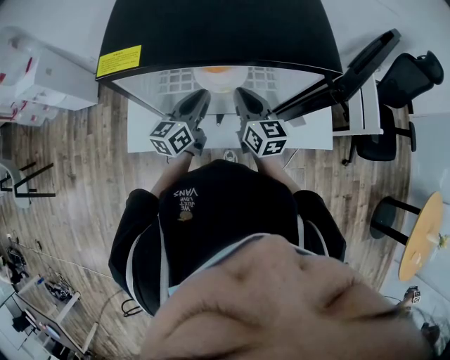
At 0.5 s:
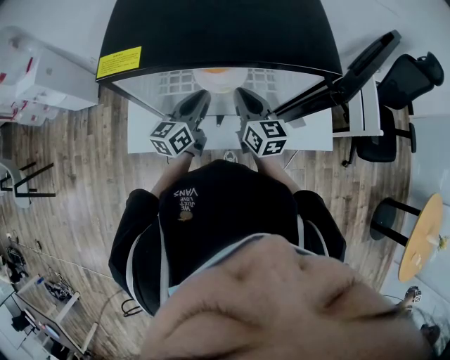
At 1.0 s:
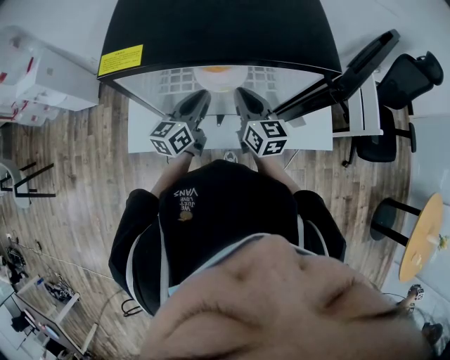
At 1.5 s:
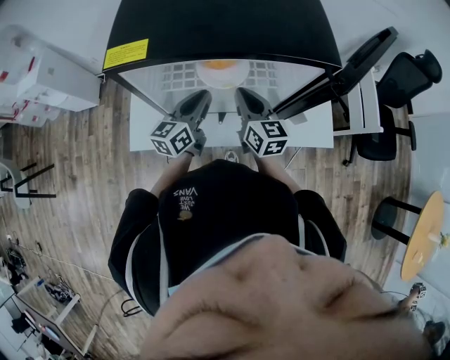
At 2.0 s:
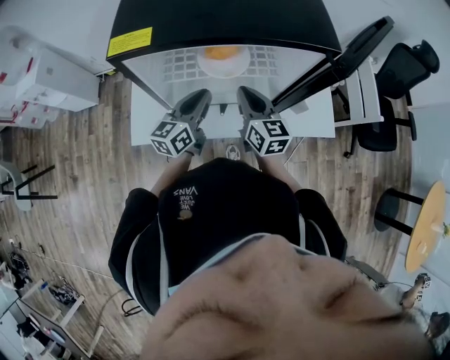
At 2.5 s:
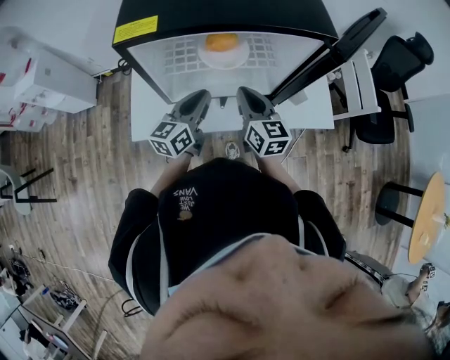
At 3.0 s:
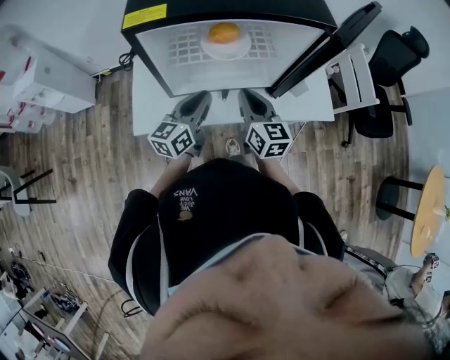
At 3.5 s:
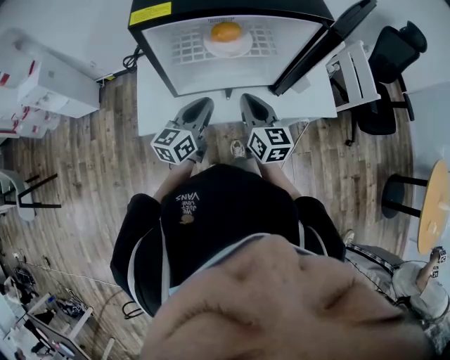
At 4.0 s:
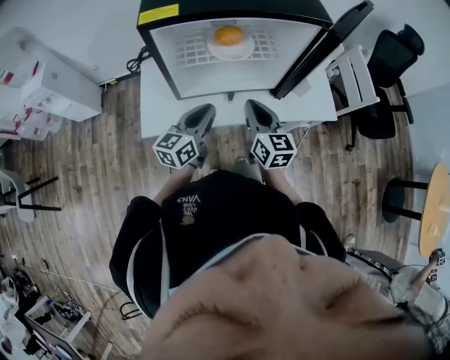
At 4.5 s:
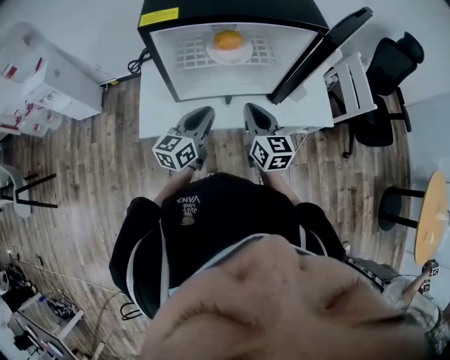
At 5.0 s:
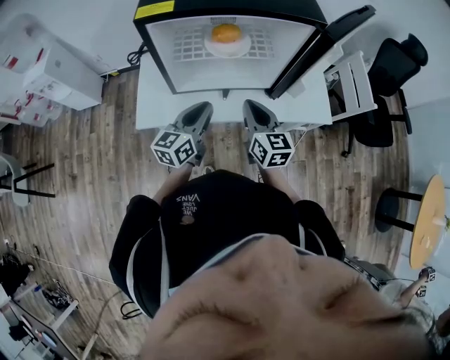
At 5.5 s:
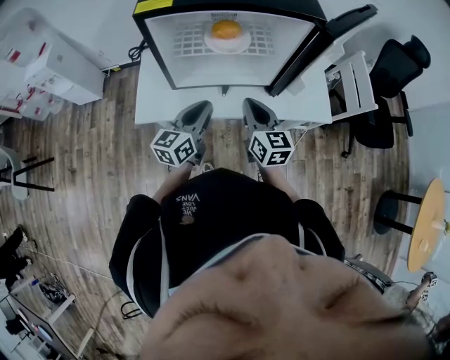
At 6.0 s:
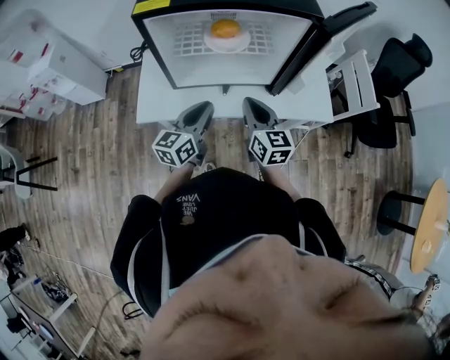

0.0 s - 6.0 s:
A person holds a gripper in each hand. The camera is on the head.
0.0 s - 2.0 s: The grippers move only a little.
2.0 s - 4.0 s: Both grippers move backward, approximately 10 cm.
4.0 s - 6.0 s: There are only small adjustments of the grippers.

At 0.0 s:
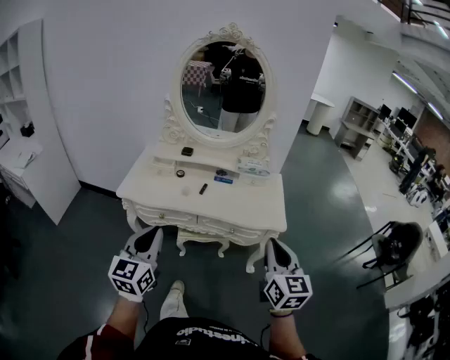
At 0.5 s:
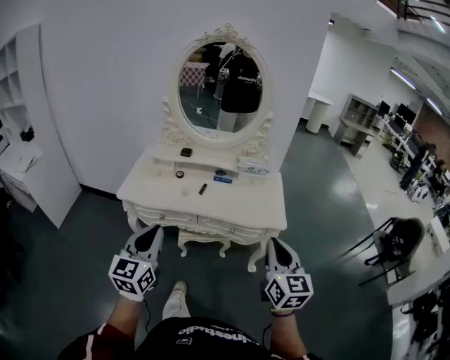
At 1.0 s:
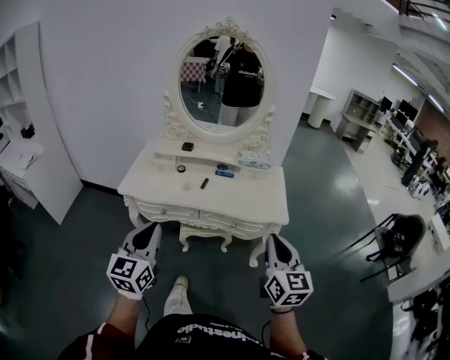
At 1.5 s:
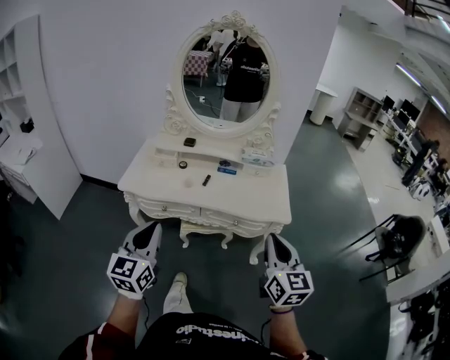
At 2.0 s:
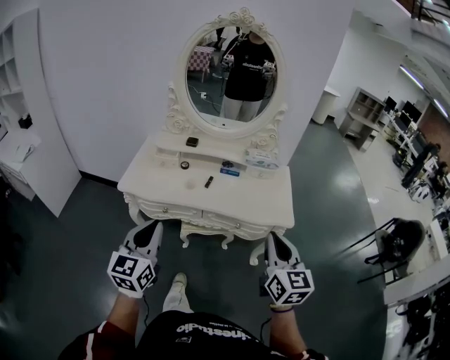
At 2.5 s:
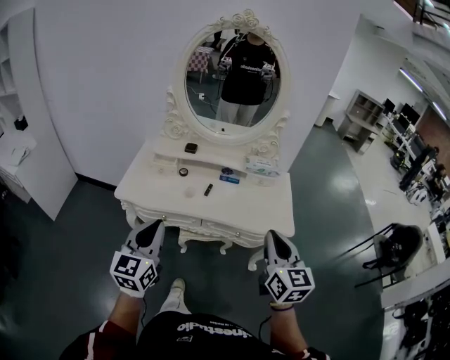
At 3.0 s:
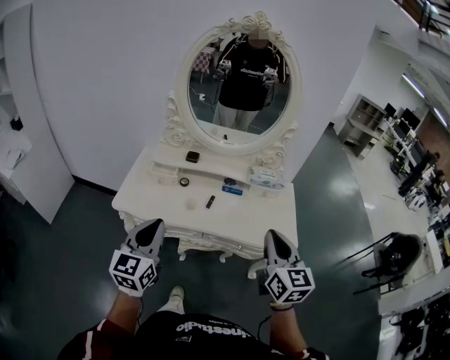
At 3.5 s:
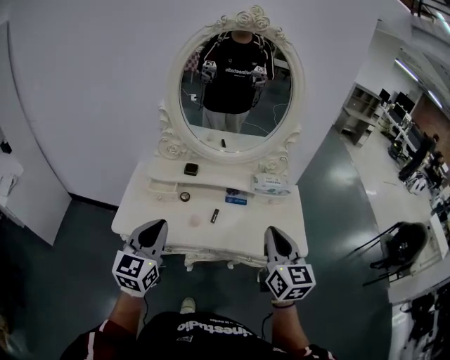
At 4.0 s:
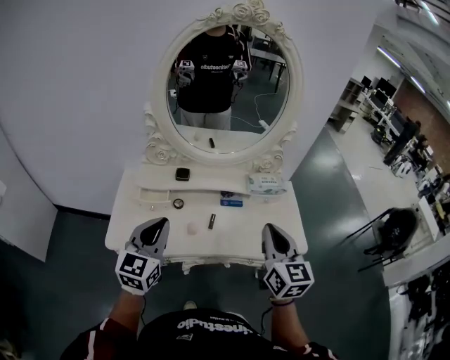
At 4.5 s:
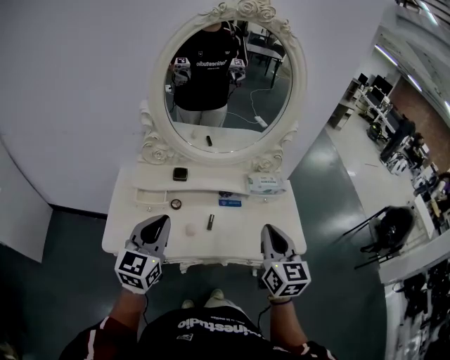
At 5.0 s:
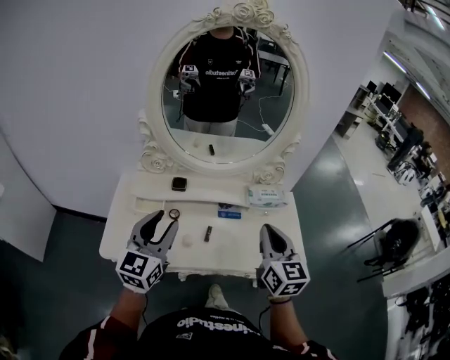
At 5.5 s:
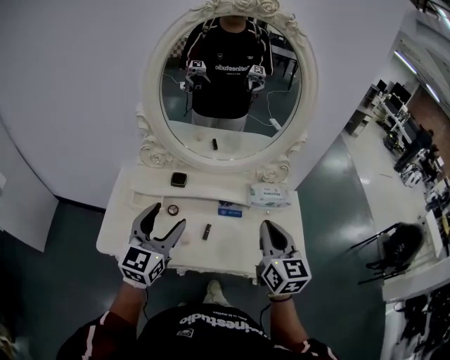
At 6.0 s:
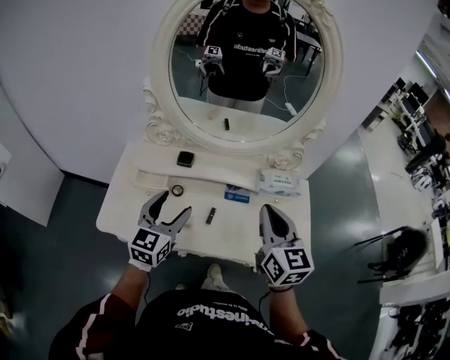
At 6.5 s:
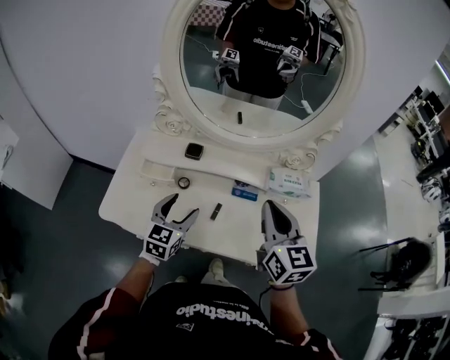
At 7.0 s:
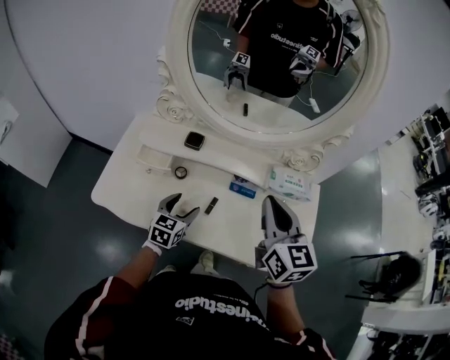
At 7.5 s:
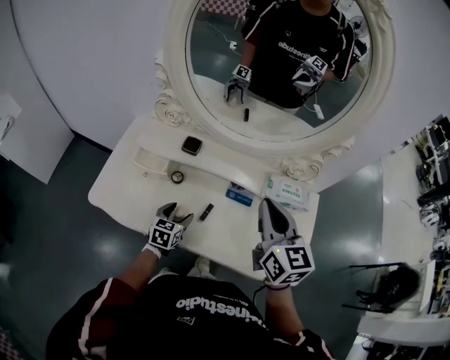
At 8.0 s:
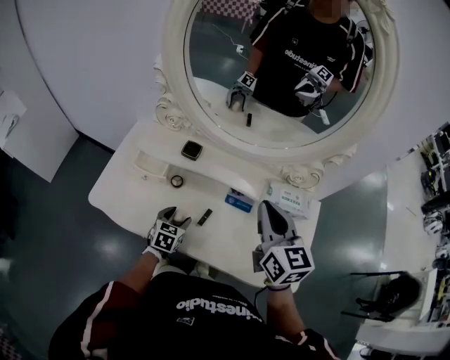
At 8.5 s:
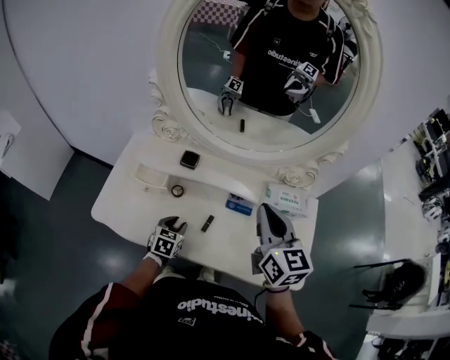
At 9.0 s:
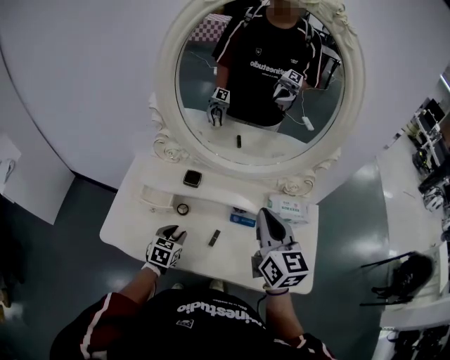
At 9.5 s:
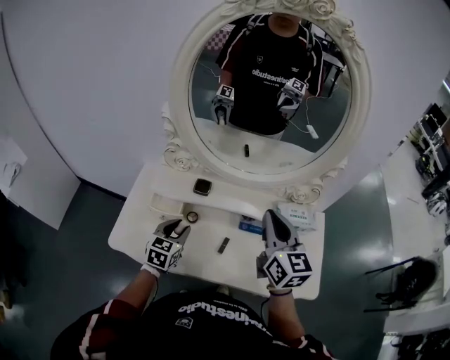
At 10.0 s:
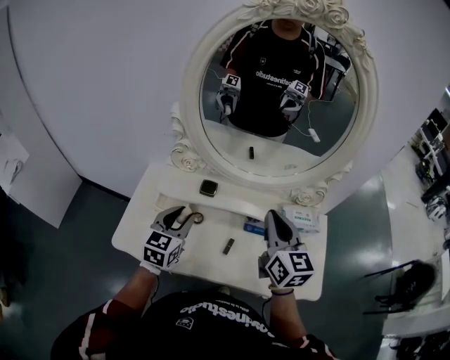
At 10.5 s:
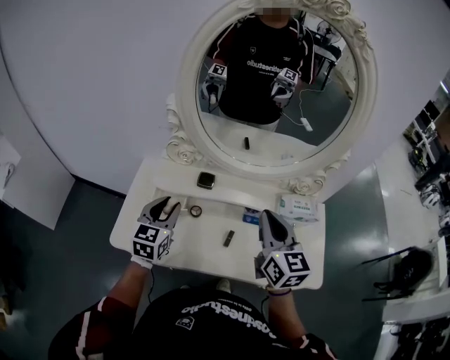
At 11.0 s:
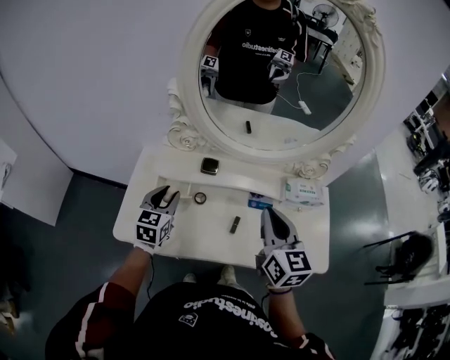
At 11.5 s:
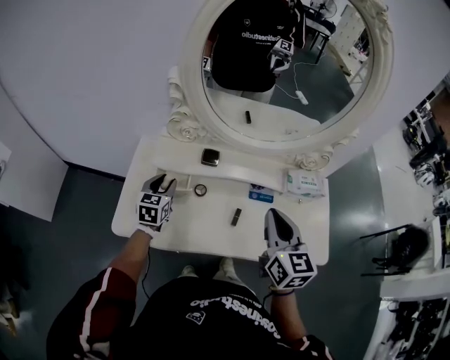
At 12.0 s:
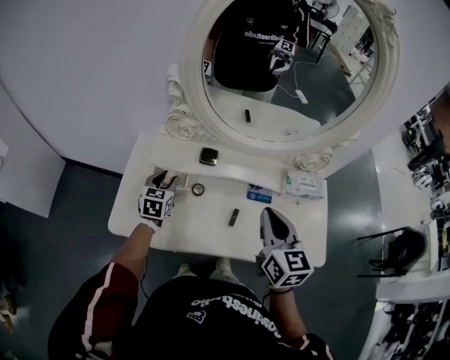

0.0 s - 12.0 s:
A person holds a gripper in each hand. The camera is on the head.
0.0 s - 2.0 s: The right gripper moves about 5 cm.
2.0 s - 4.0 s: The left gripper is displaced forward by approximately 30 cm. Meanwhile the right gripper heads forward and to the left, covering approximately 30 cm.
4.0 s - 6.0 s: The left gripper moves forward and downward, roughly 15 cm, and opens; the right gripper travels forward by some 10 cm.
6.0 s - 8.0 s: The left gripper goes about 25 cm downward, and tilts its fingers about 30 degrees downward; the right gripper heads forward, covering some 10 cm.
8.0 s - 10.0 s: The left gripper shifts about 25 cm upward, rotates about 30 degrees, and closes up. Meanwhile the right gripper shifts roughly 5 cm to the left.
10.0 s - 12.0 s: The left gripper heads downward, to the left and forward, covering some 20 cm. Meanwhile the right gripper goes approximately 10 cm downward and backward.

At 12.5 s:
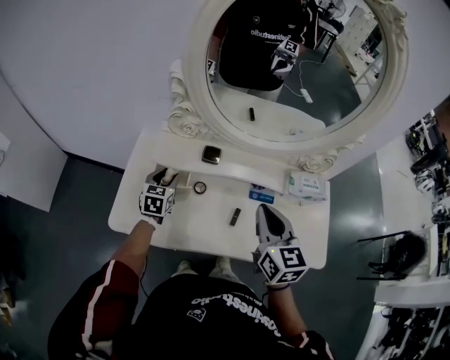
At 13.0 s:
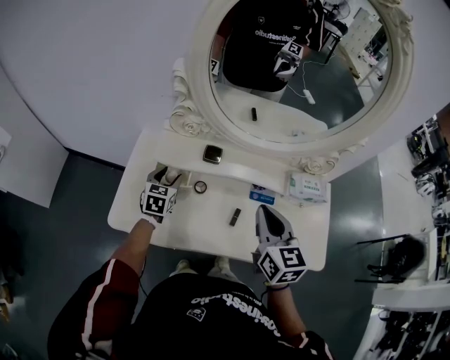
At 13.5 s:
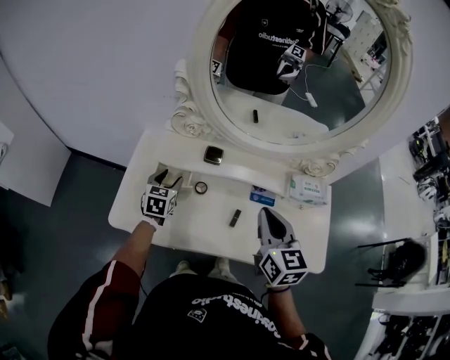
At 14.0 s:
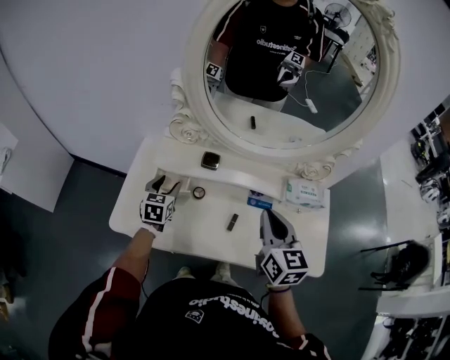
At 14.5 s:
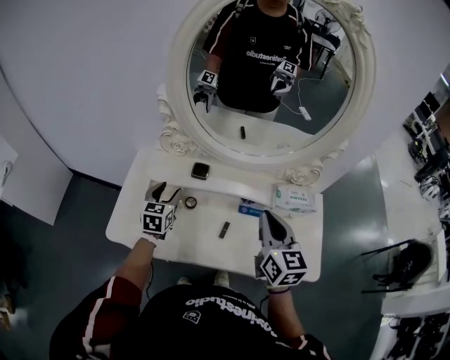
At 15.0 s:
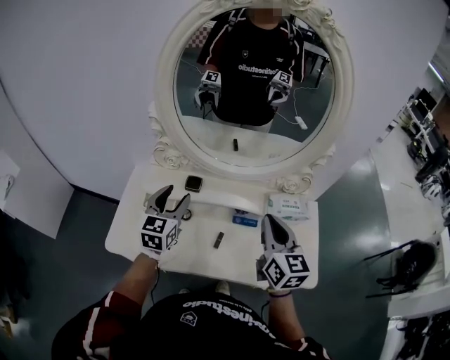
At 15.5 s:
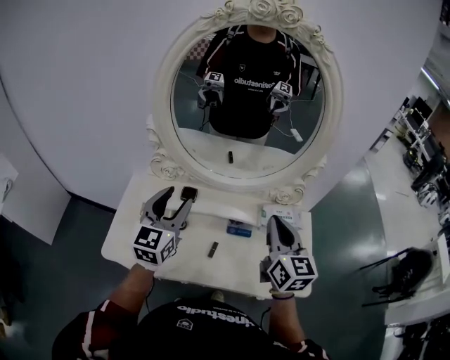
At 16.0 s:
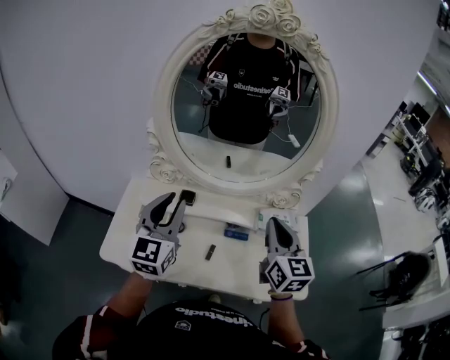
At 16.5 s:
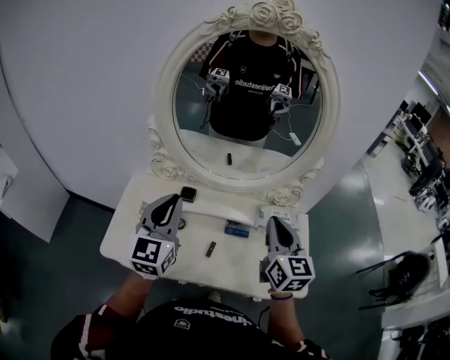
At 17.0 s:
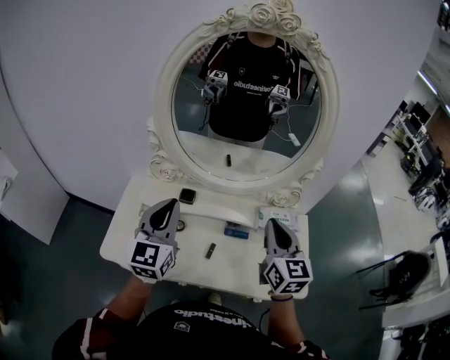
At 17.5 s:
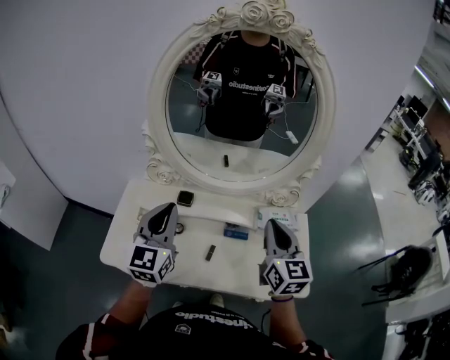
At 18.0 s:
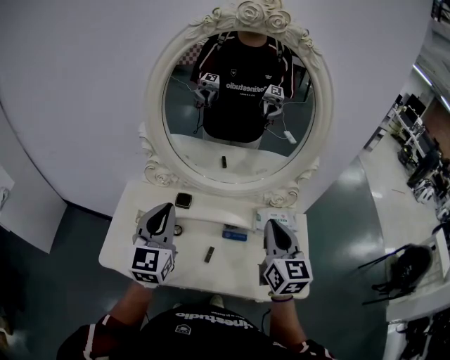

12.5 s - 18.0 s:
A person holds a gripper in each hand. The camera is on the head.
12.5 s - 14.5 s: The left gripper travels upward by roughly 5 cm. The right gripper heads to the right, covering about 5 cm.
14.5 s - 16.0 s: The right gripper shifts roughly 10 cm upward and to the right, while the left gripper heads upward, covering approximately 25 cm, turns by roughly 30 degrees, and closes.
16.0 s - 18.0 s: The grippers stay close to where they were, moving slightly.

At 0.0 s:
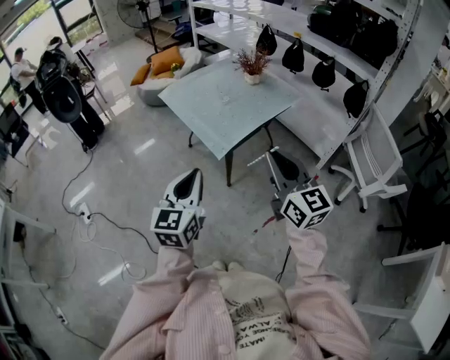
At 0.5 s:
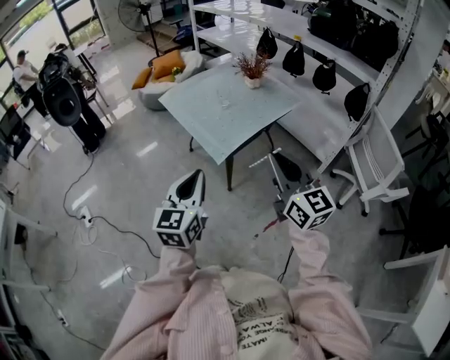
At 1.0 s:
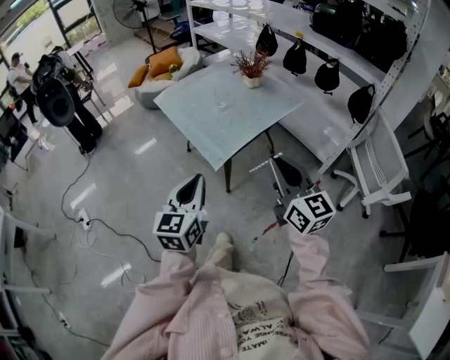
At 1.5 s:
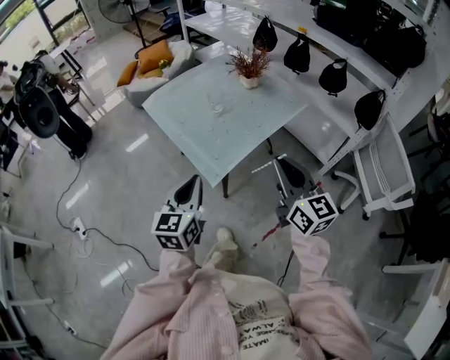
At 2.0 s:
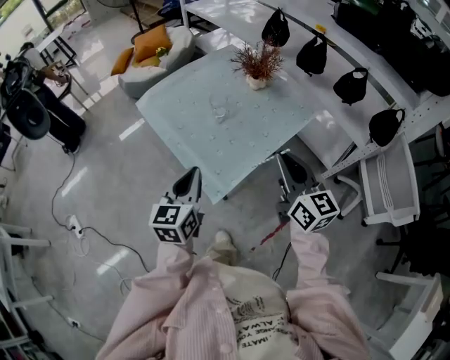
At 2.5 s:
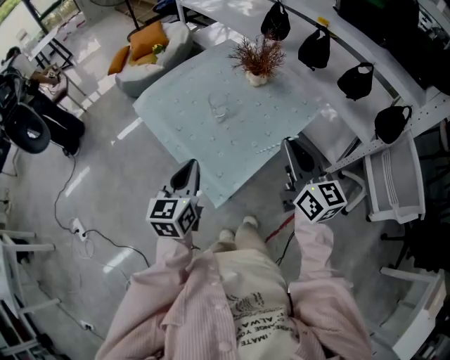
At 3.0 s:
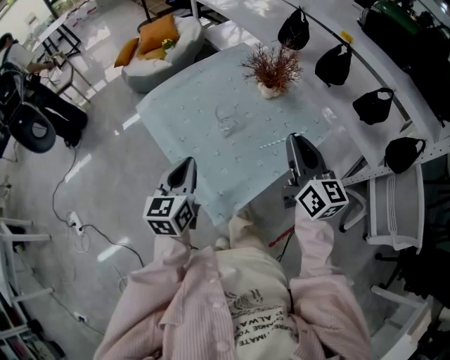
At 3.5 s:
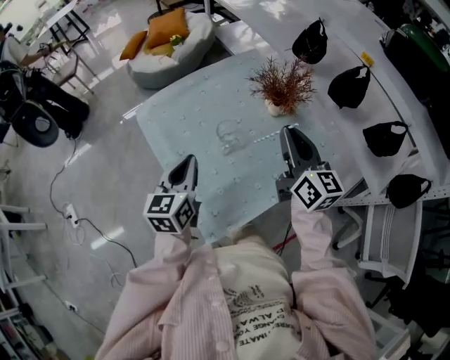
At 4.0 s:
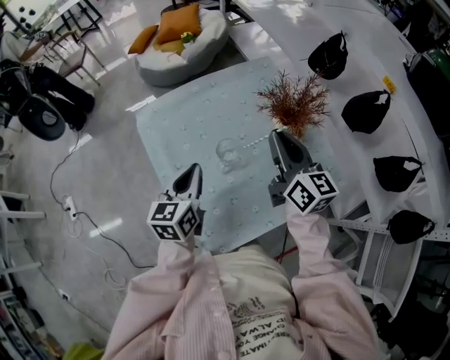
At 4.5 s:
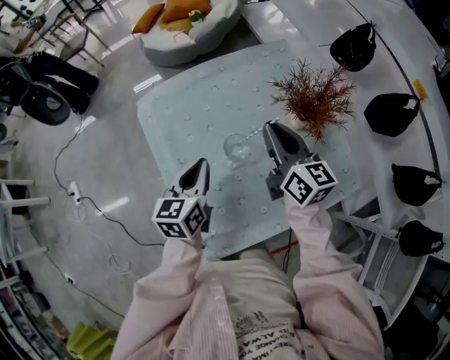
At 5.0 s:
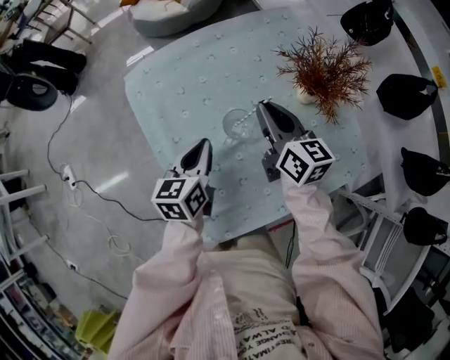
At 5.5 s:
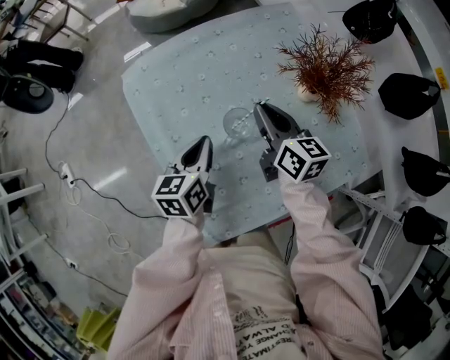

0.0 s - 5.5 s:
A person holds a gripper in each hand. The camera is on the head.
0.0 s - 2.0 s: Both grippers travel together forward, some 30 cm.
2.0 s - 3.5 s: The two grippers go roughly 25 cm forward.
3.5 s - 5.5 s: The left gripper moves downward and forward, some 15 cm, and turns by some 20 degrees, while the right gripper heads downward, forward and to the left, covering approximately 25 cm, and swivels about 30 degrees.
